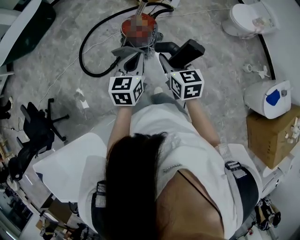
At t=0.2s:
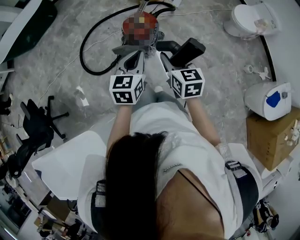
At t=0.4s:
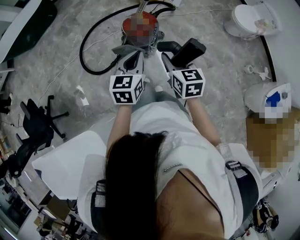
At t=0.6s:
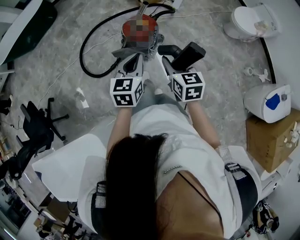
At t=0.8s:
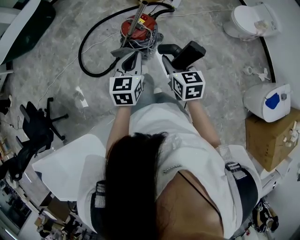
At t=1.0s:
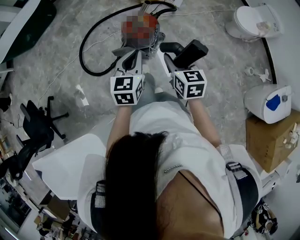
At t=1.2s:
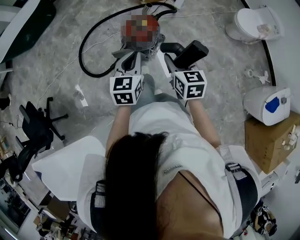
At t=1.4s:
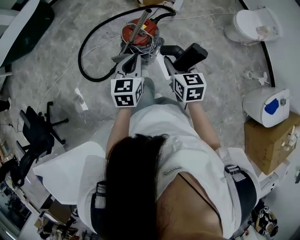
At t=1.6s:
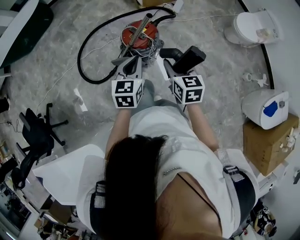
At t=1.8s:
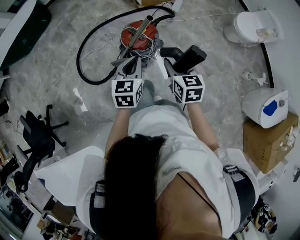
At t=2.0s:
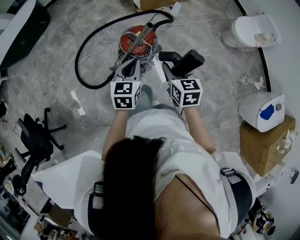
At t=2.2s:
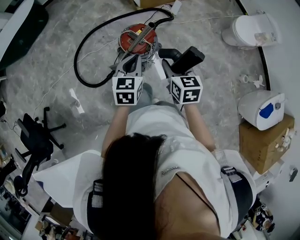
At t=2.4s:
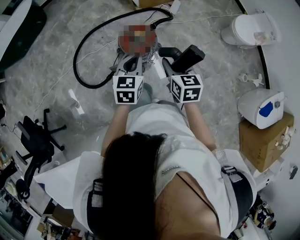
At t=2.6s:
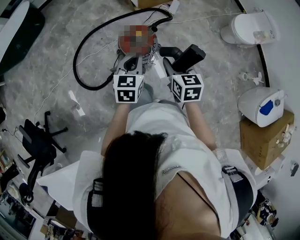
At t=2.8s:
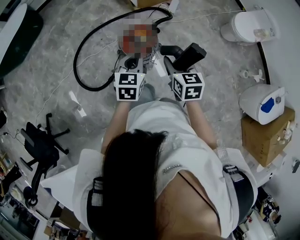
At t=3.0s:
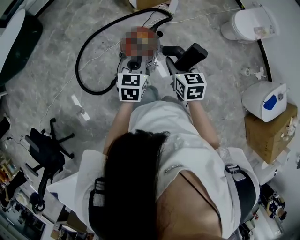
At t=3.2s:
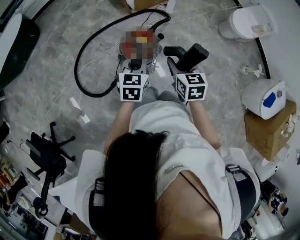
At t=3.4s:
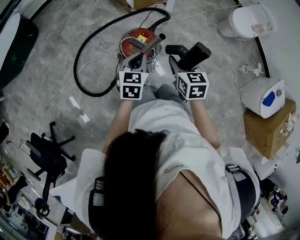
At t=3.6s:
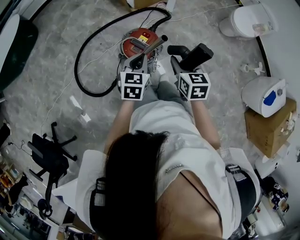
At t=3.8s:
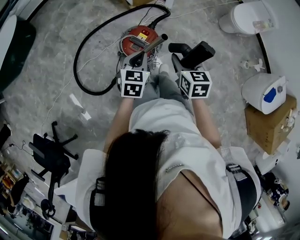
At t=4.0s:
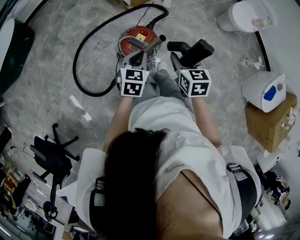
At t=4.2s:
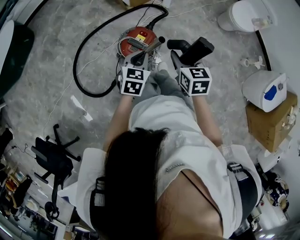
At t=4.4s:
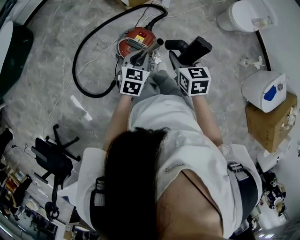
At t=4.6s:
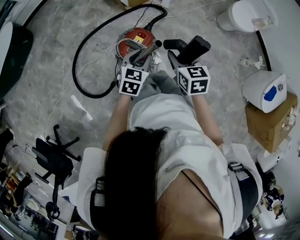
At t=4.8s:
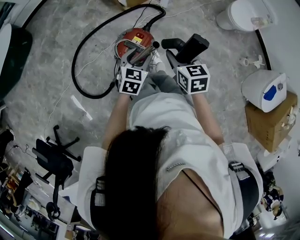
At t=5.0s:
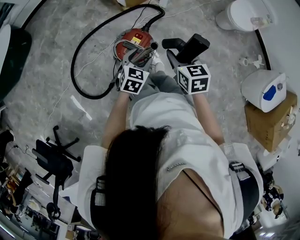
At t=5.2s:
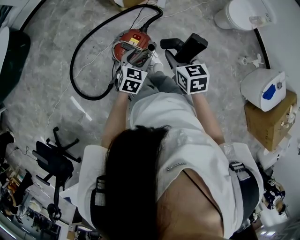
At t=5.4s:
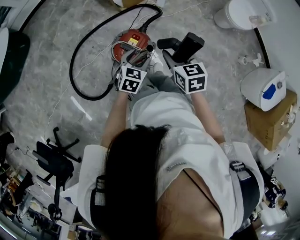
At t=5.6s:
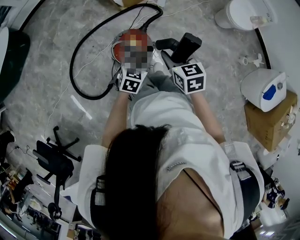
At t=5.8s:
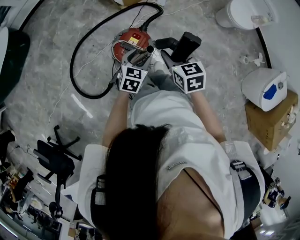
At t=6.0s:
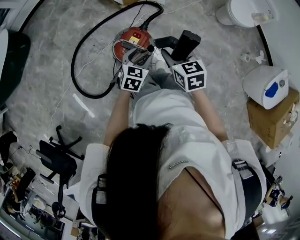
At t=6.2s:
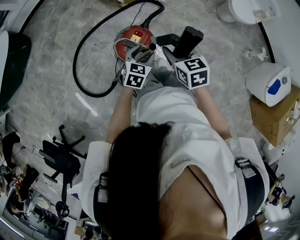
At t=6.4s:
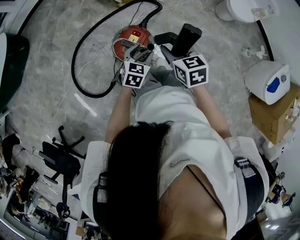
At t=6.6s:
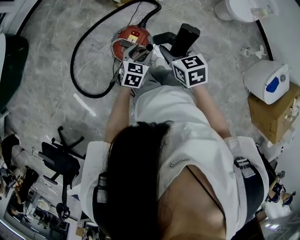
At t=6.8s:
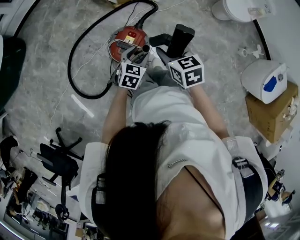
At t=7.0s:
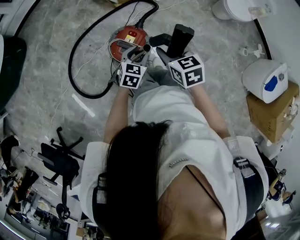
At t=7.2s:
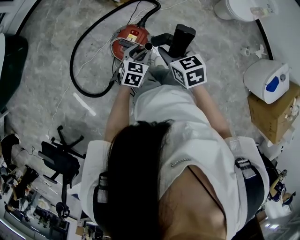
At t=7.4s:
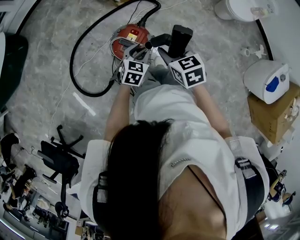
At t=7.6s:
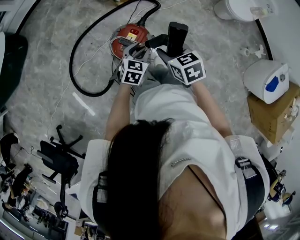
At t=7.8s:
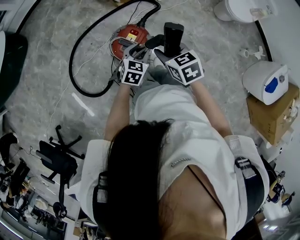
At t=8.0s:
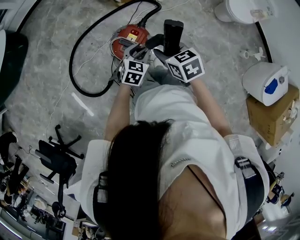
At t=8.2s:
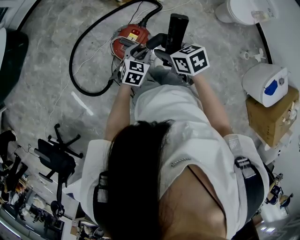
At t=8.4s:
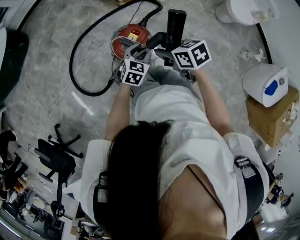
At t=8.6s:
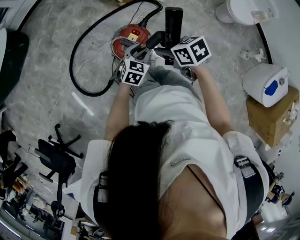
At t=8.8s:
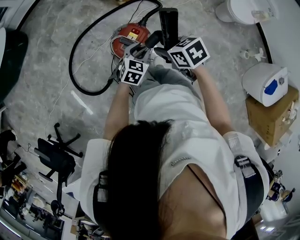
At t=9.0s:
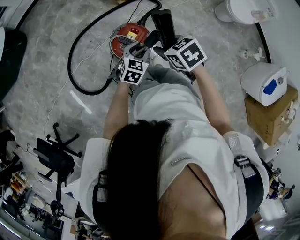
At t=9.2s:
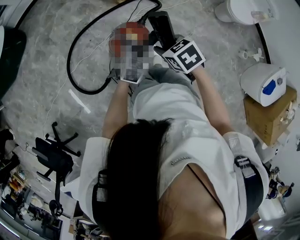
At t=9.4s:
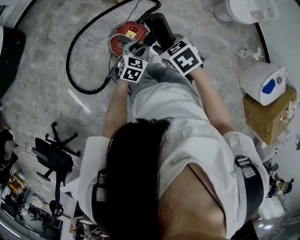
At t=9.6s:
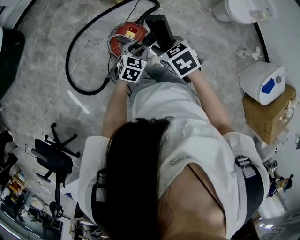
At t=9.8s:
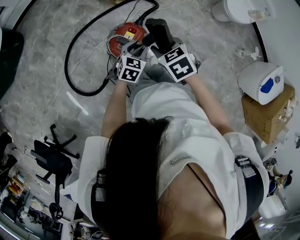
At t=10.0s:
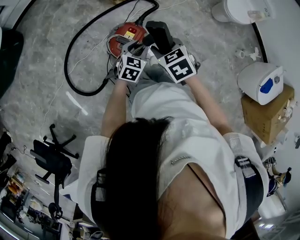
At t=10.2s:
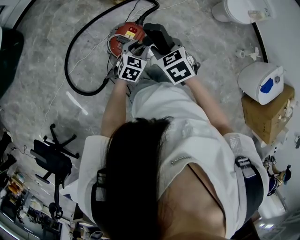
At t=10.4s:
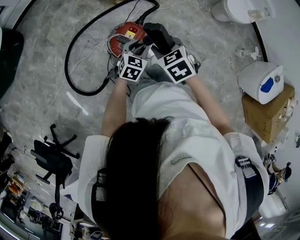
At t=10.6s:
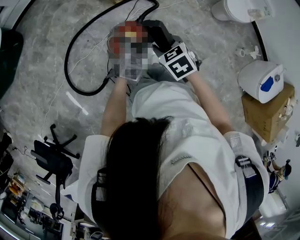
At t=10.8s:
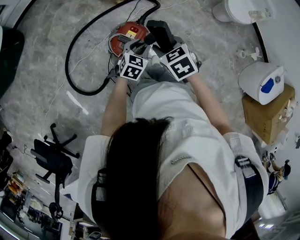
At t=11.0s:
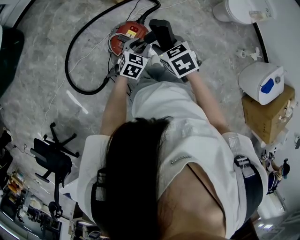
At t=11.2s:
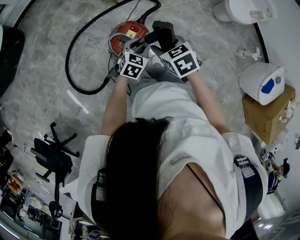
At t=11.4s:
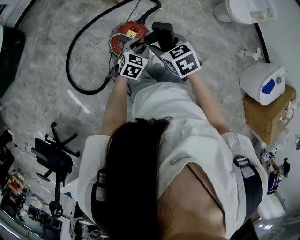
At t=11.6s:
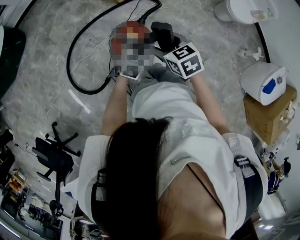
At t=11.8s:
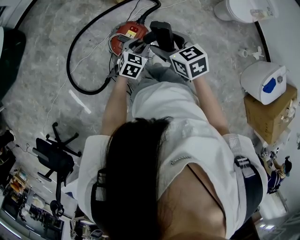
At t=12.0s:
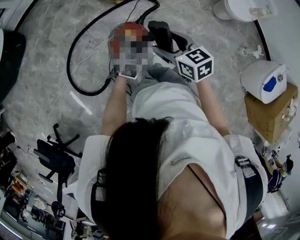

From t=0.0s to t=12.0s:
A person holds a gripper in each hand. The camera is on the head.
From t=0.0s to t=1.6s: The grippers both shift forward by approximately 10 cm.
From t=1.6s to t=3.0s: The grippers both shift forward by some 10 cm.
From t=3.0s to t=4.4s: The right gripper goes roughly 5 cm forward. The left gripper goes about 10 cm forward and downward.
From t=4.4s to t=6.0s: The left gripper heads downward, covering some 5 cm, and opens up.
From t=6.0s to t=7.6s: The grippers move only a little.
From t=9.0s to t=10.4s: There are only small adjustments of the grippers.
From t=10.4s to t=12.0s: The right gripper turns by roughly 30 degrees, and opens.

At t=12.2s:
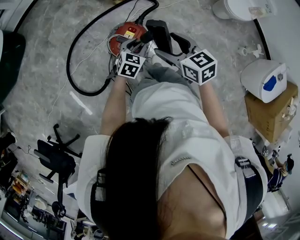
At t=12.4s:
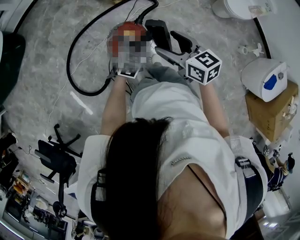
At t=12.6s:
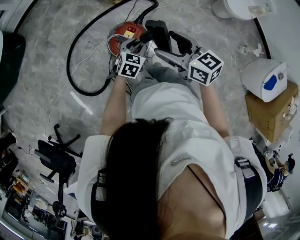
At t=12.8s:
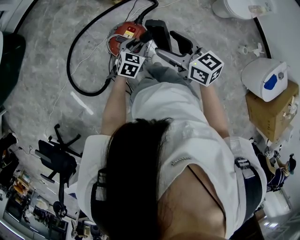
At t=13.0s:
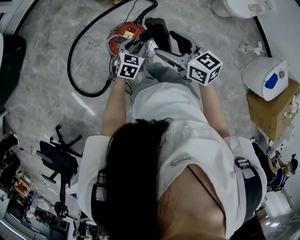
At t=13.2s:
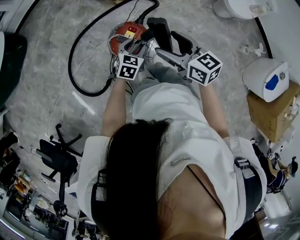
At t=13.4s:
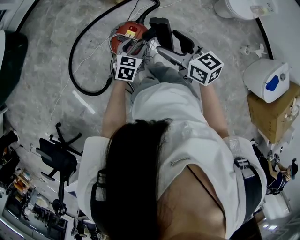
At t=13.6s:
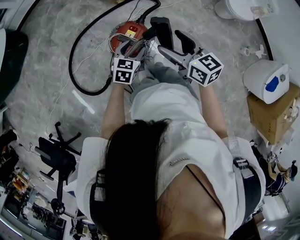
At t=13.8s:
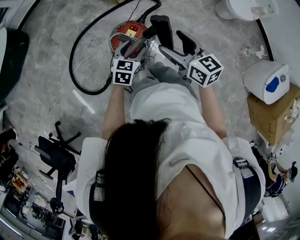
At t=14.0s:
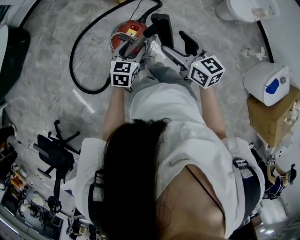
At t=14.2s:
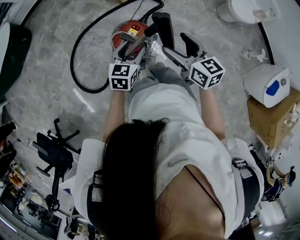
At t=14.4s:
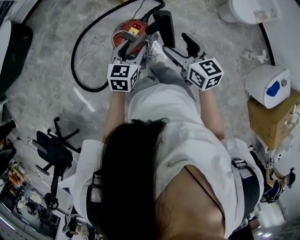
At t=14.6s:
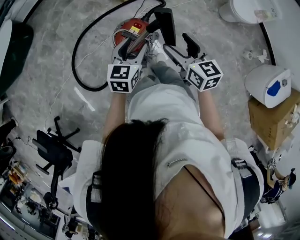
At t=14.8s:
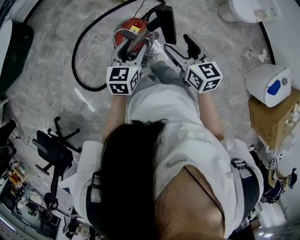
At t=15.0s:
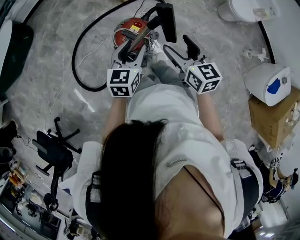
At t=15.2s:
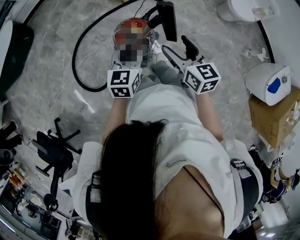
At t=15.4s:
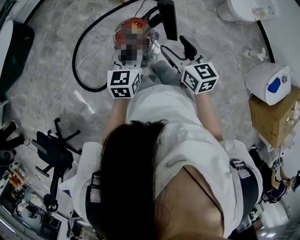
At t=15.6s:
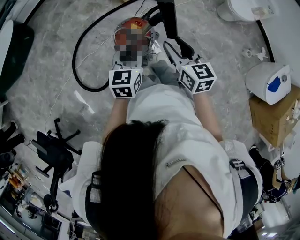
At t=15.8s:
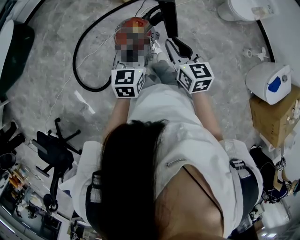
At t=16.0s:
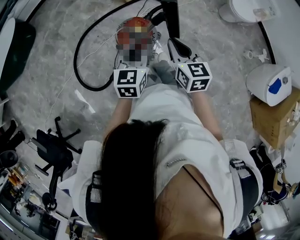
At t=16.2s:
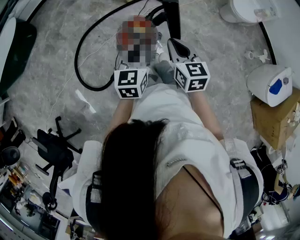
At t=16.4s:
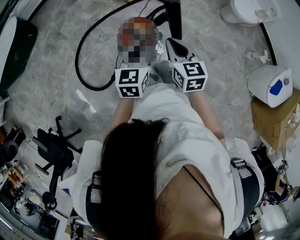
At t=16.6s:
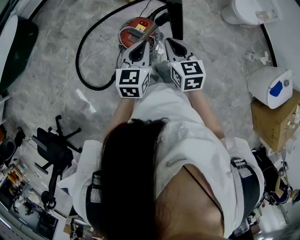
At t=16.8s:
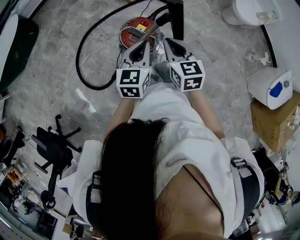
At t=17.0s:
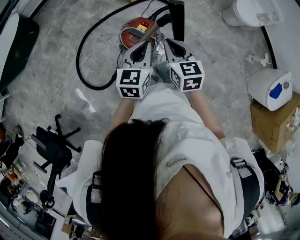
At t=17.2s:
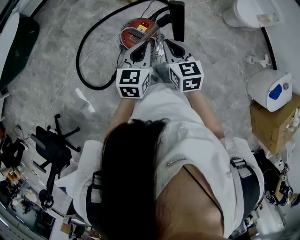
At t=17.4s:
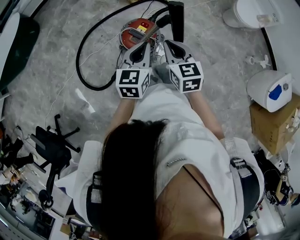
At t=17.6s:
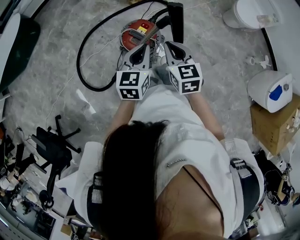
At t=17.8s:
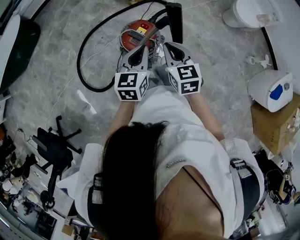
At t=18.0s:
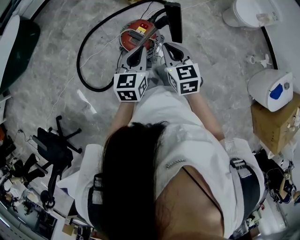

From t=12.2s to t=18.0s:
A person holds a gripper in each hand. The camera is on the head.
From t=12.2s to t=13.6s: The grippers stay close to where they were, moving slightly.
From t=13.6s to t=15.0s: The left gripper is displaced upward by roughly 10 cm. Meanwhile the right gripper travels backward by some 5 cm.
From t=15.0s to t=16.6s: The left gripper closes up, while the right gripper changes place by roughly 5 cm, and closes.
From t=16.6s to t=18.0s: The grippers stay close to where they were, moving slightly.

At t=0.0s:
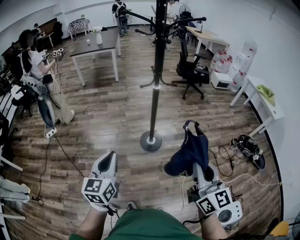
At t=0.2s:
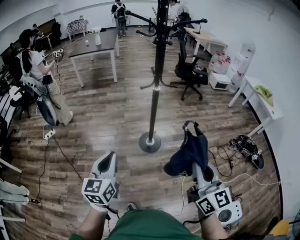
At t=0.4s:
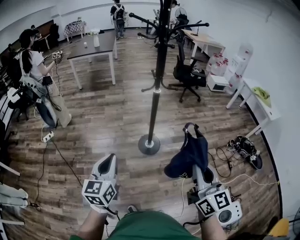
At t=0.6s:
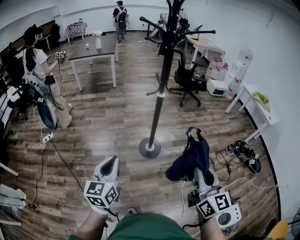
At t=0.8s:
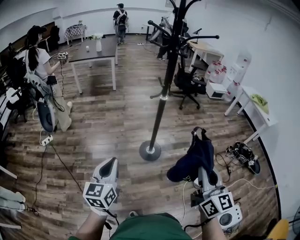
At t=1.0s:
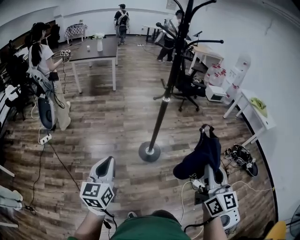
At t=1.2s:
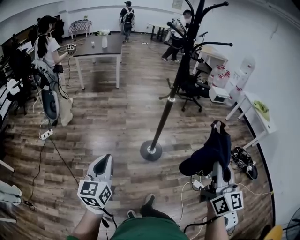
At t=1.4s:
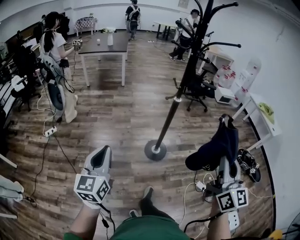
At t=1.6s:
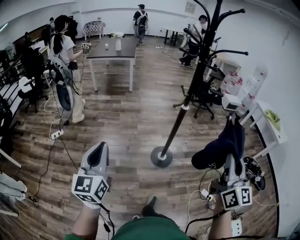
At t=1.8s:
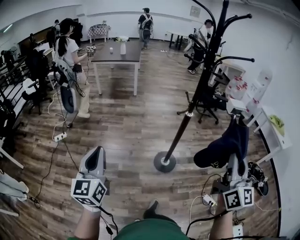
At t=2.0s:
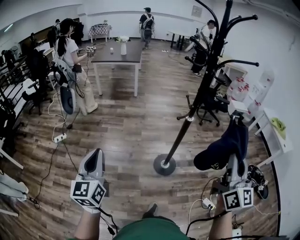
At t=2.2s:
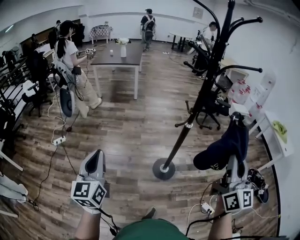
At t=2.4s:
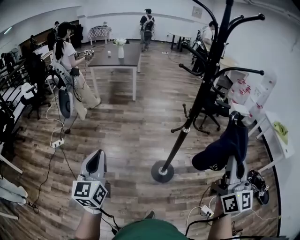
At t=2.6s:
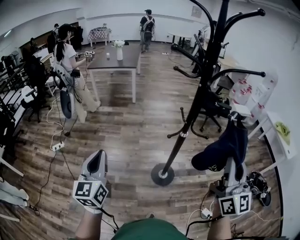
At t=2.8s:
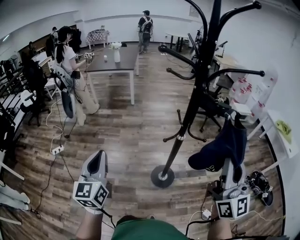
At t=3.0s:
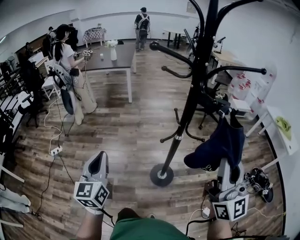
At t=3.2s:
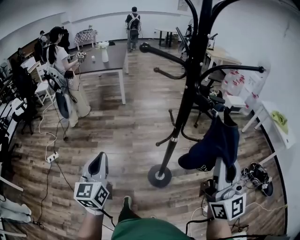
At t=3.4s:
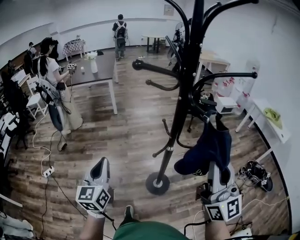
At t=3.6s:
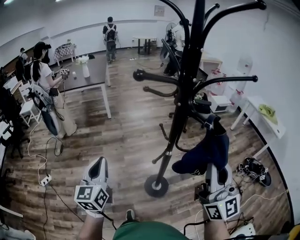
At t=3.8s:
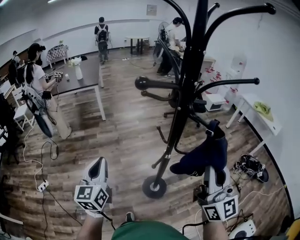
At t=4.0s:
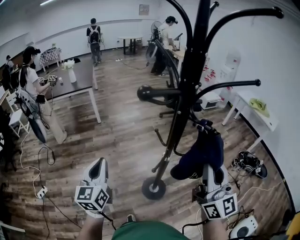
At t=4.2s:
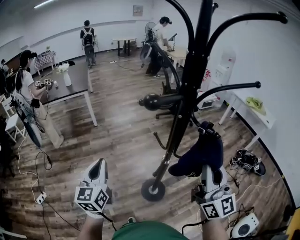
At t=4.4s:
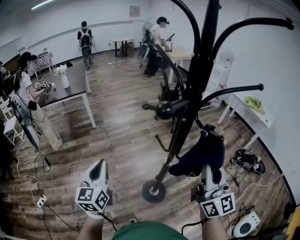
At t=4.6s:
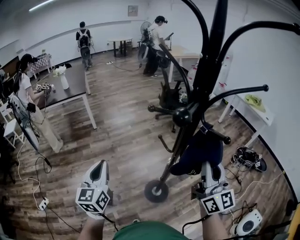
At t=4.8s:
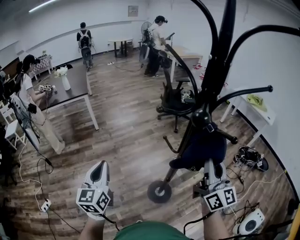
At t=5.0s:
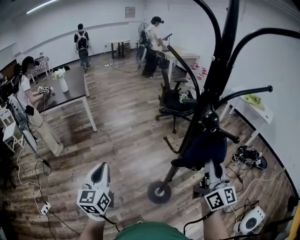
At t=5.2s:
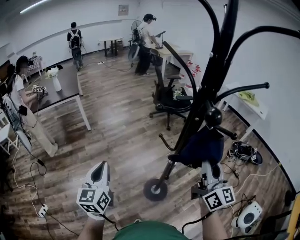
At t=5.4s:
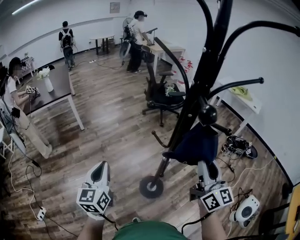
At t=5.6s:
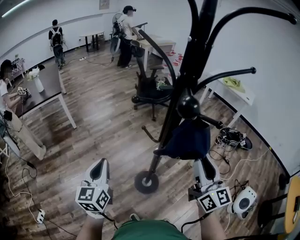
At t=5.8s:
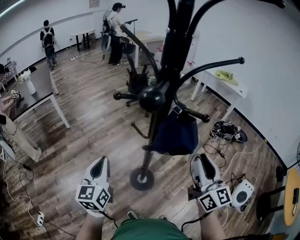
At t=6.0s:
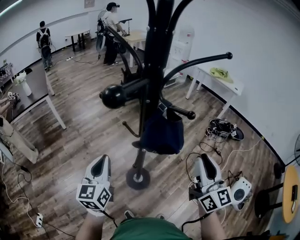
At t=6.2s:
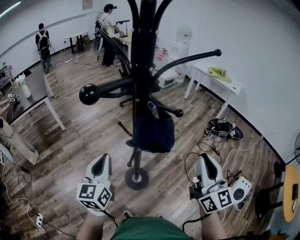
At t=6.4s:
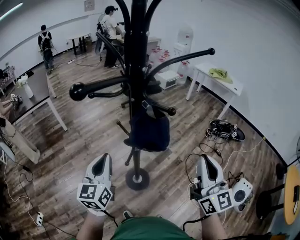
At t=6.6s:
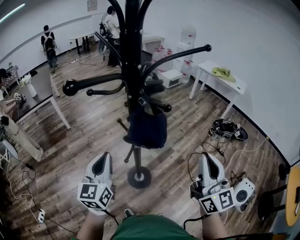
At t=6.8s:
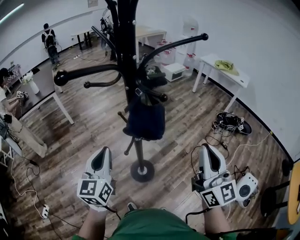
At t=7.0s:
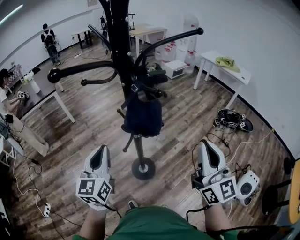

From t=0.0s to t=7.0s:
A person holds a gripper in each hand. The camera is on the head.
From t=0.0s to t=1.4s: The left gripper shifts approximately 15 cm to the left; the right gripper moves upward and to the left, some 10 cm.
From t=1.4s to t=2.8s: Both grippers move forward, some 25 cm.
From t=2.8s to t=4.2s: The right gripper shifts about 15 cm forward. Meanwhile the left gripper moves forward, roughly 25 cm, and changes its angle by approximately 20 degrees.
From t=4.2s to t=5.6s: The left gripper goes roughly 5 cm forward, while the right gripper goes about 10 cm downward, and opens up.
From t=5.6s to t=7.0s: The left gripper is displaced to the right by roughly 15 cm. Meanwhile the right gripper shifts roughly 15 cm to the right, backward and upward, and closes its fingers.
